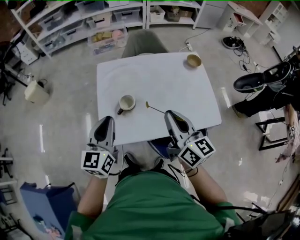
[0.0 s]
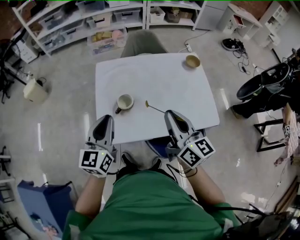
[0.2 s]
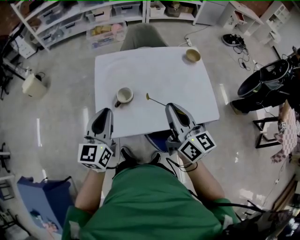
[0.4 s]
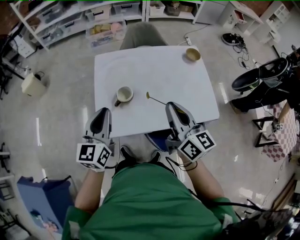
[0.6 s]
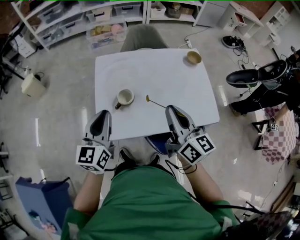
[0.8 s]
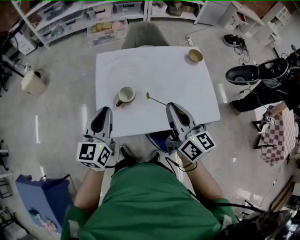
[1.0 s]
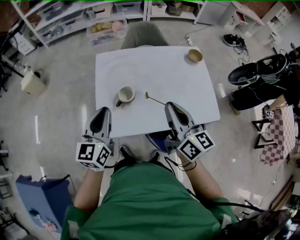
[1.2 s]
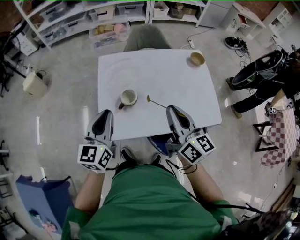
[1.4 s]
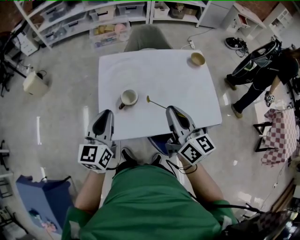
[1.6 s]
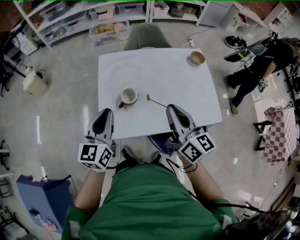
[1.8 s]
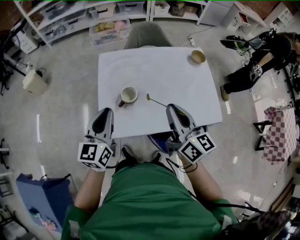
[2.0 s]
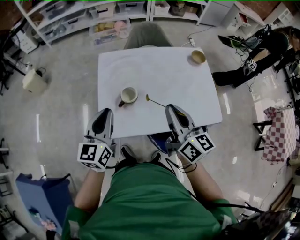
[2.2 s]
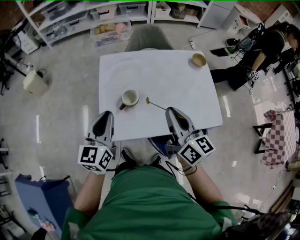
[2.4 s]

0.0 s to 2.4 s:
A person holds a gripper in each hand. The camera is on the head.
0.0 to 1.2 s: There are only small adjustments of the grippers.
1.2 to 2.4 s: Both grippers stay about where they are.

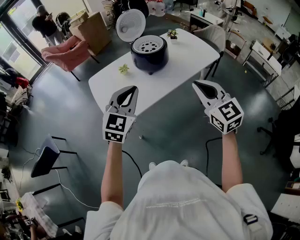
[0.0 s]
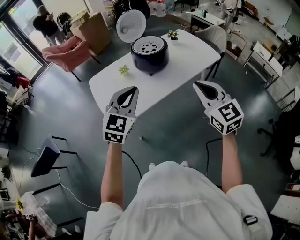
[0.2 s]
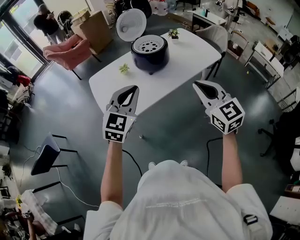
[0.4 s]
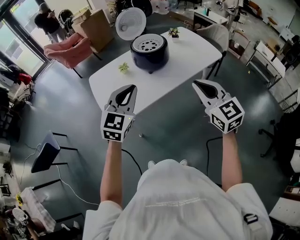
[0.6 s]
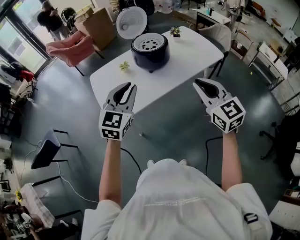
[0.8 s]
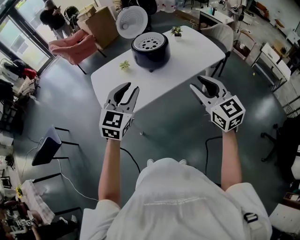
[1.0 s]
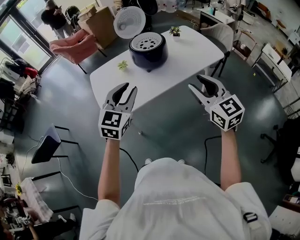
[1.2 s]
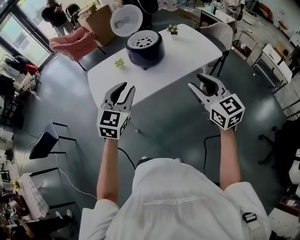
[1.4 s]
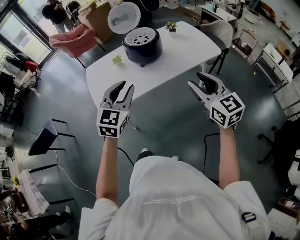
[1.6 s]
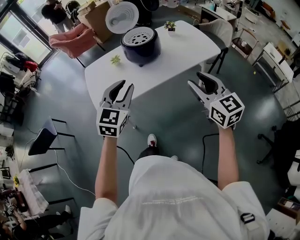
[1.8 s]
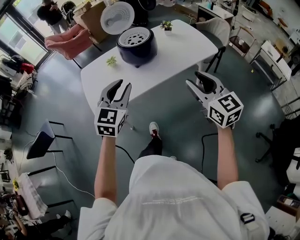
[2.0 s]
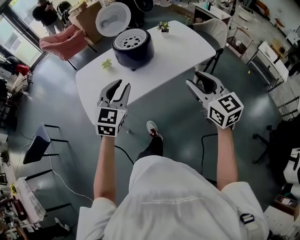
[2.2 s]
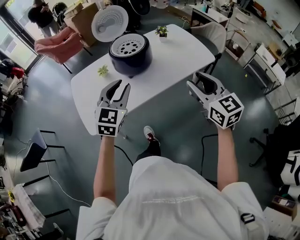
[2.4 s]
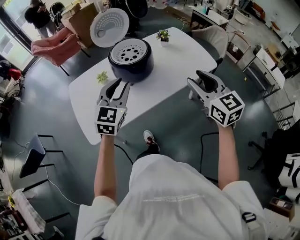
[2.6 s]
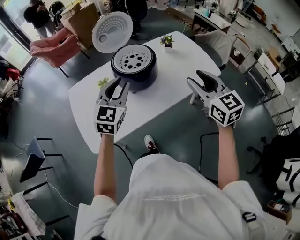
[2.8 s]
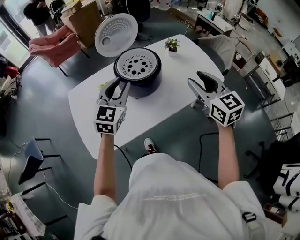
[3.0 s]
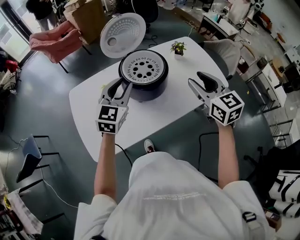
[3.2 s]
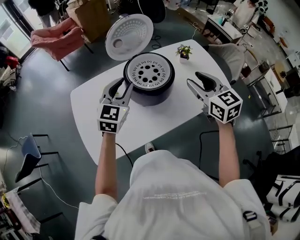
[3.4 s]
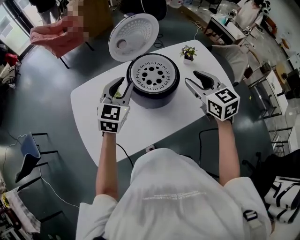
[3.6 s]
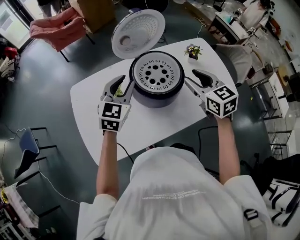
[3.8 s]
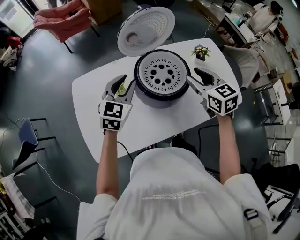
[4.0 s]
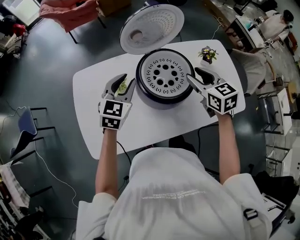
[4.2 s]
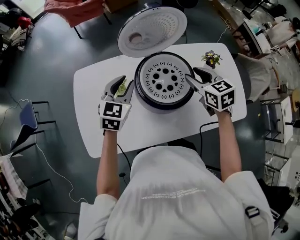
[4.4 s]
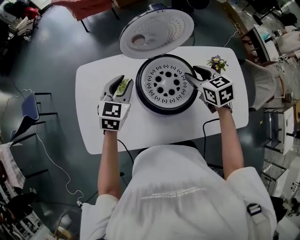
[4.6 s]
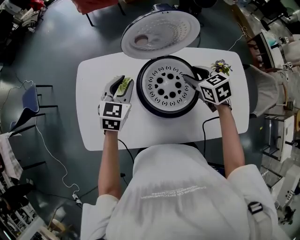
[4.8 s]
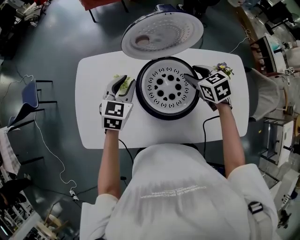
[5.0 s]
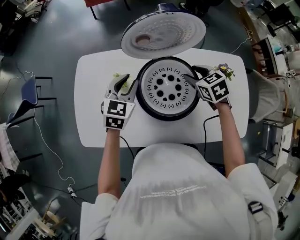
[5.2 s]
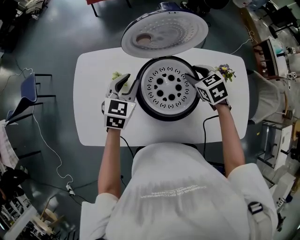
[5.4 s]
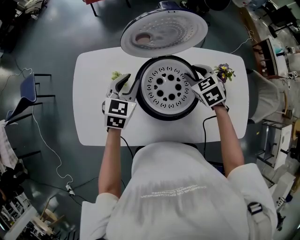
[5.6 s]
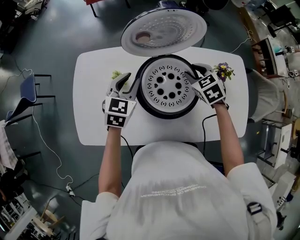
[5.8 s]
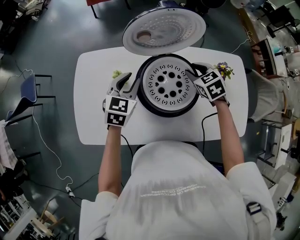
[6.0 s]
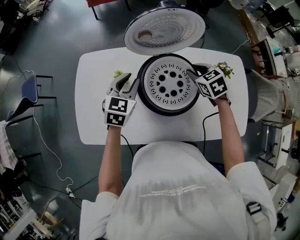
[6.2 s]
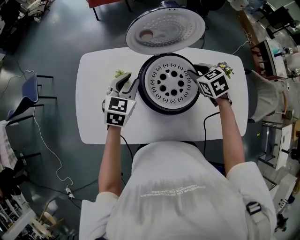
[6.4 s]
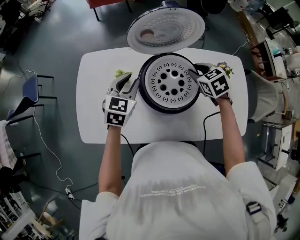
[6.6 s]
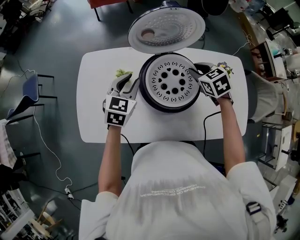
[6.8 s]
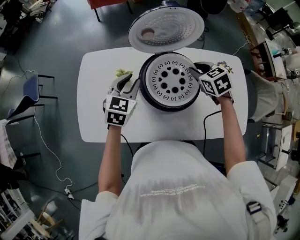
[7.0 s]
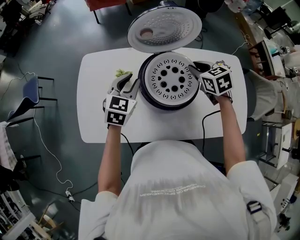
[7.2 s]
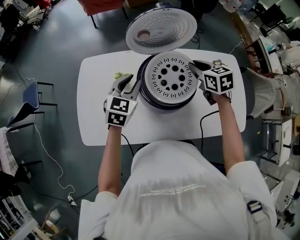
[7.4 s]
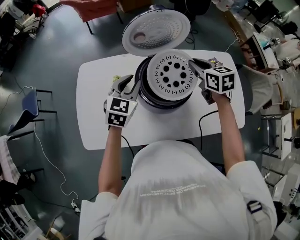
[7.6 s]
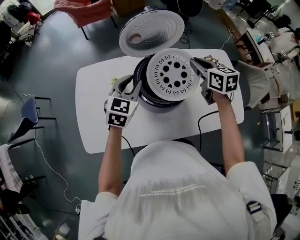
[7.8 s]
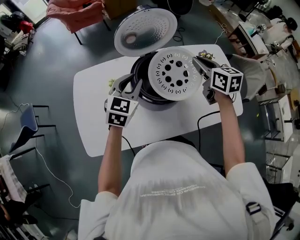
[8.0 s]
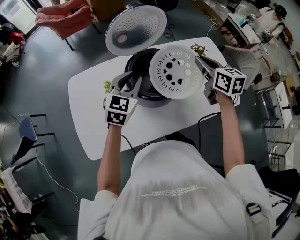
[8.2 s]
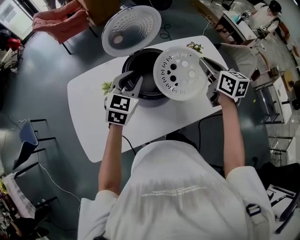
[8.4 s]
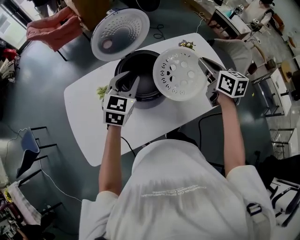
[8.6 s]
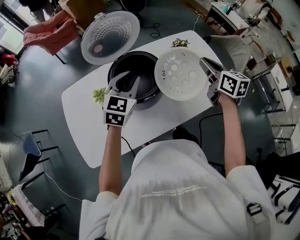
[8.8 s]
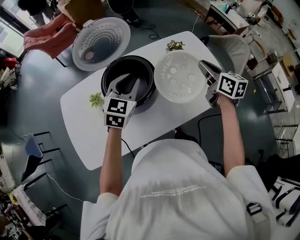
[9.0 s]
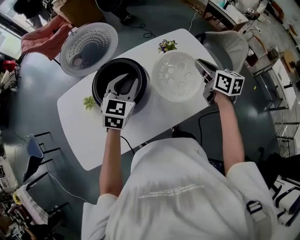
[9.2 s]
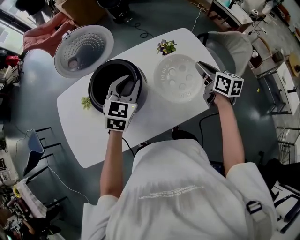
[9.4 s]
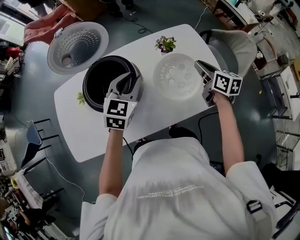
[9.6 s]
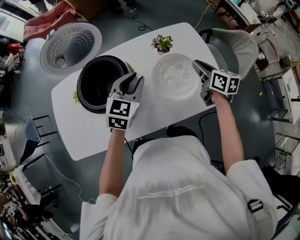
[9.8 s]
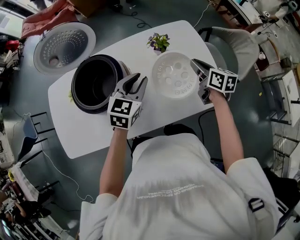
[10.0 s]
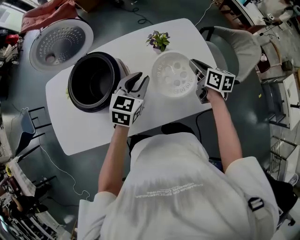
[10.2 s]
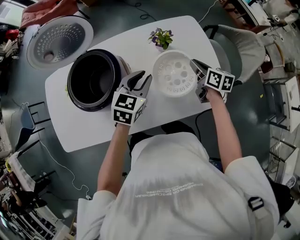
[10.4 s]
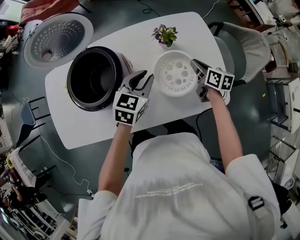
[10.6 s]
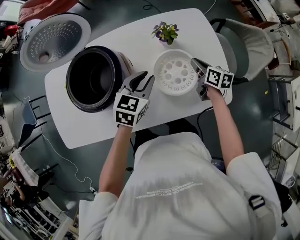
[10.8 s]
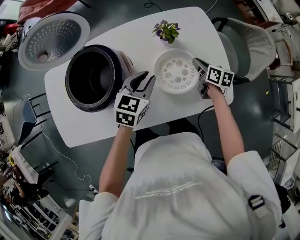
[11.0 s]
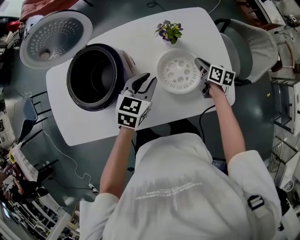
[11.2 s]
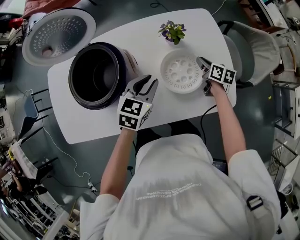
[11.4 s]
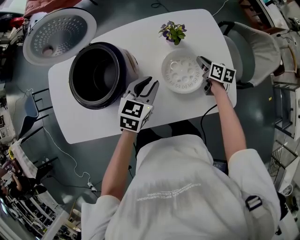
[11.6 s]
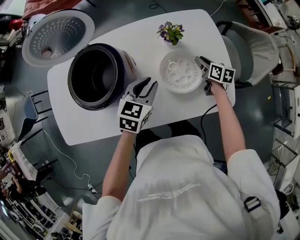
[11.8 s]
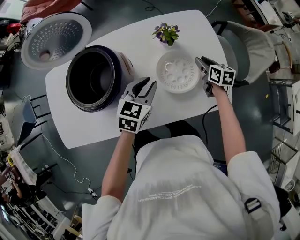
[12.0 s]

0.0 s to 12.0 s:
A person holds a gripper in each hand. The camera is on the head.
0.0 to 1.6 s: Both grippers travel together to the right, about 10 cm. The right gripper opens its fingers. Meanwhile the left gripper opens.
1.6 to 3.0 s: The two grippers go about 30 cm forward.
3.0 to 4.4 s: The left gripper travels forward, downward and to the left by about 20 cm, and changes its angle by some 20 degrees. The right gripper goes some 30 cm forward and downward, and changes its angle by roughly 30 degrees.
4.4 to 6.0 s: The right gripper is displaced downward and forward by some 10 cm, and changes its angle by approximately 30 degrees.
6.0 to 7.6 s: The left gripper changes place by approximately 5 cm, while the right gripper shifts approximately 10 cm upward, changes its angle by roughly 30 degrees, and closes its fingers.
7.6 to 9.0 s: The right gripper heads to the right and backward, covering approximately 25 cm, and swivels about 30 degrees, while the left gripper goes about 15 cm to the right.
9.0 to 10.4 s: The right gripper shifts roughly 25 cm downward, to the right and forward, while the left gripper is displaced to the right and downward by roughly 25 cm.
10.4 to 12.0 s: The right gripper goes approximately 10 cm downward, and opens.

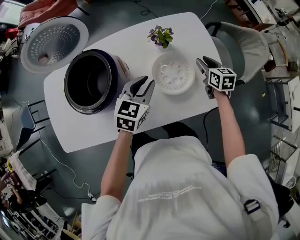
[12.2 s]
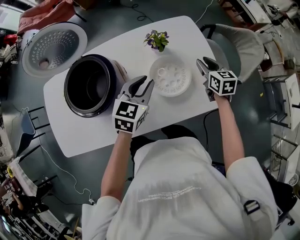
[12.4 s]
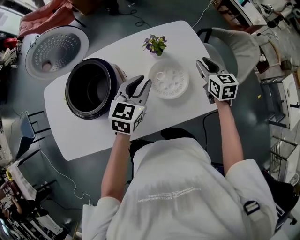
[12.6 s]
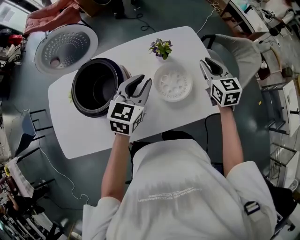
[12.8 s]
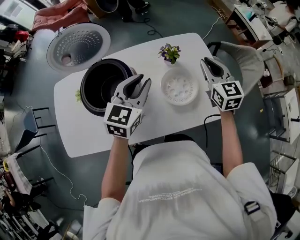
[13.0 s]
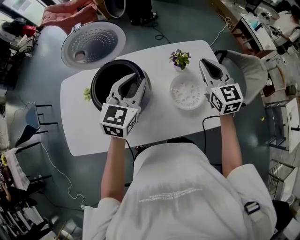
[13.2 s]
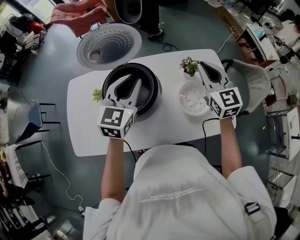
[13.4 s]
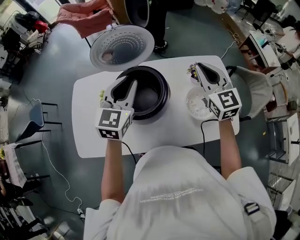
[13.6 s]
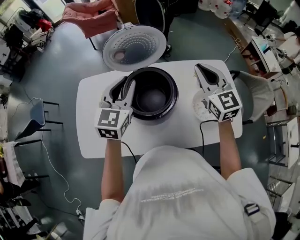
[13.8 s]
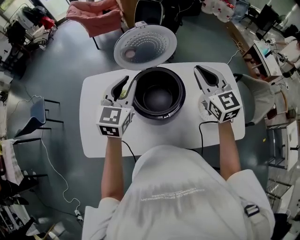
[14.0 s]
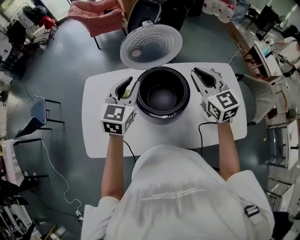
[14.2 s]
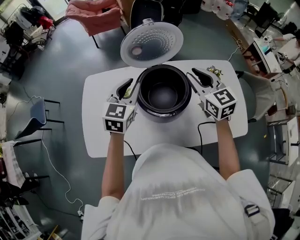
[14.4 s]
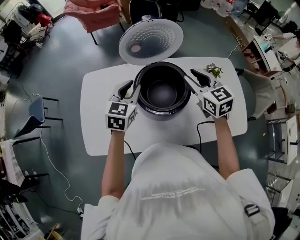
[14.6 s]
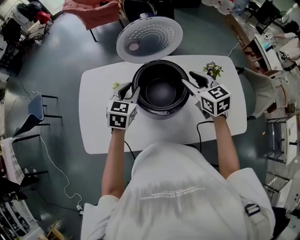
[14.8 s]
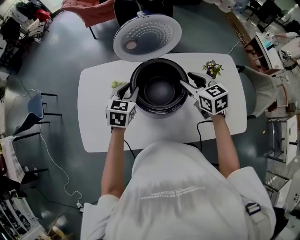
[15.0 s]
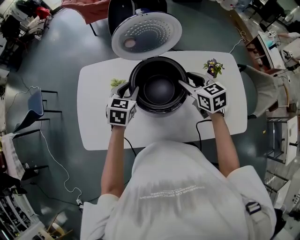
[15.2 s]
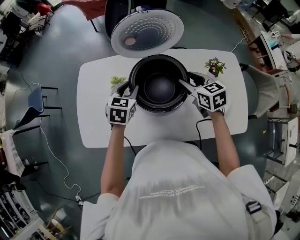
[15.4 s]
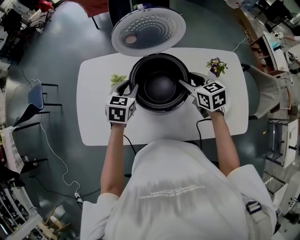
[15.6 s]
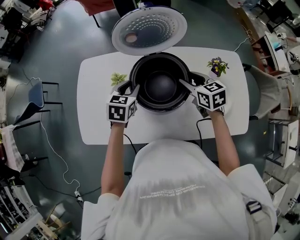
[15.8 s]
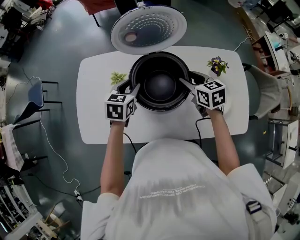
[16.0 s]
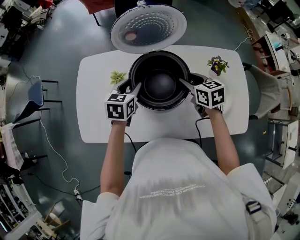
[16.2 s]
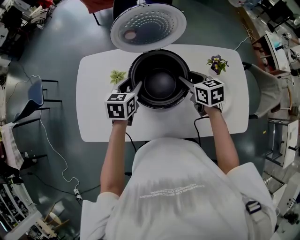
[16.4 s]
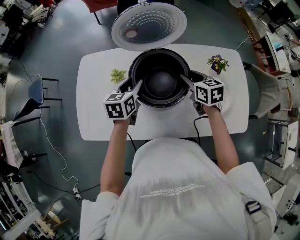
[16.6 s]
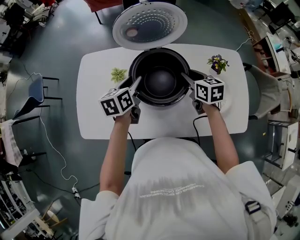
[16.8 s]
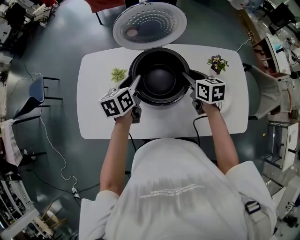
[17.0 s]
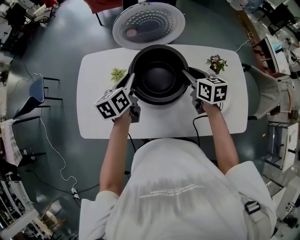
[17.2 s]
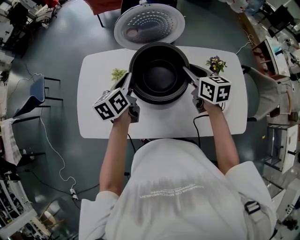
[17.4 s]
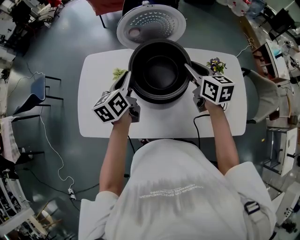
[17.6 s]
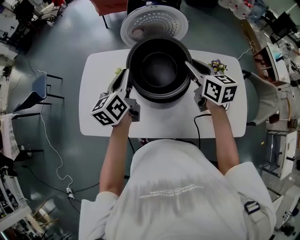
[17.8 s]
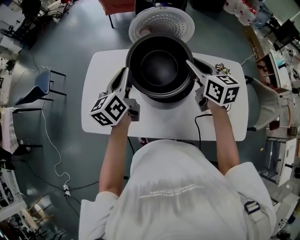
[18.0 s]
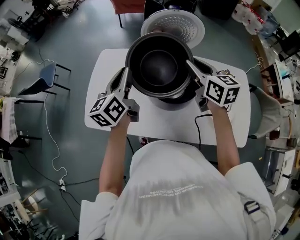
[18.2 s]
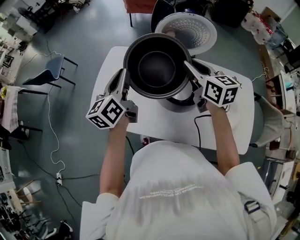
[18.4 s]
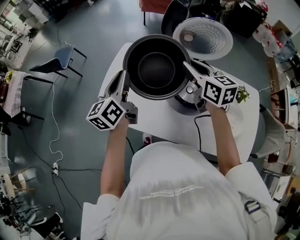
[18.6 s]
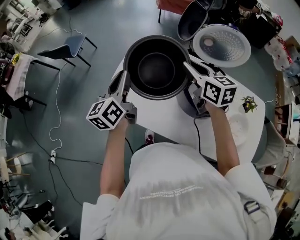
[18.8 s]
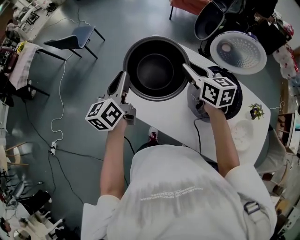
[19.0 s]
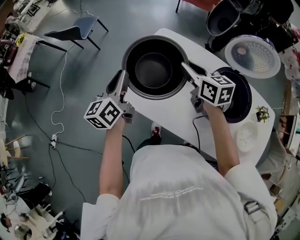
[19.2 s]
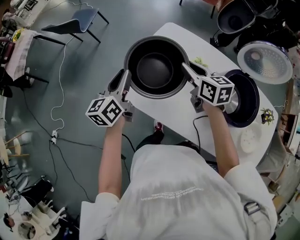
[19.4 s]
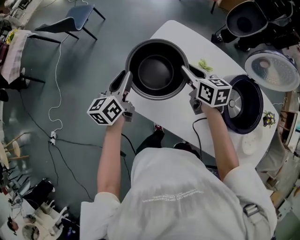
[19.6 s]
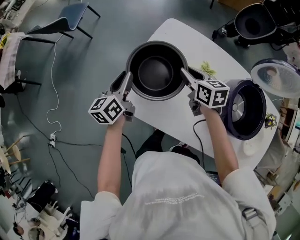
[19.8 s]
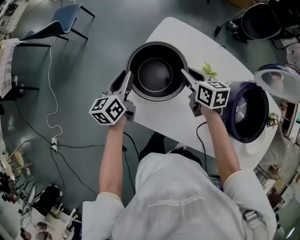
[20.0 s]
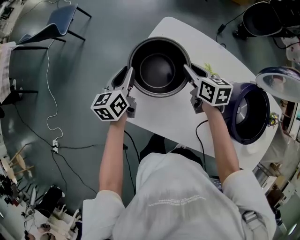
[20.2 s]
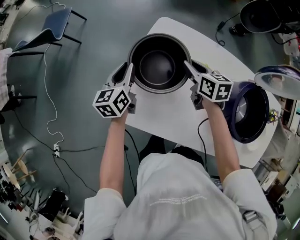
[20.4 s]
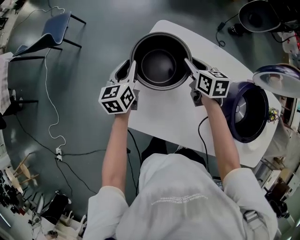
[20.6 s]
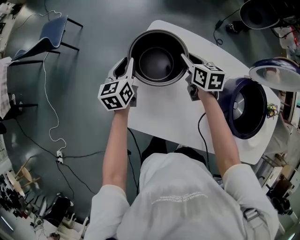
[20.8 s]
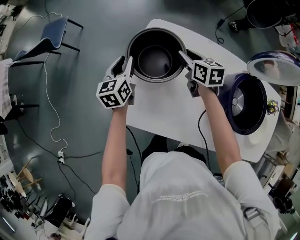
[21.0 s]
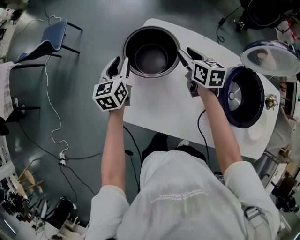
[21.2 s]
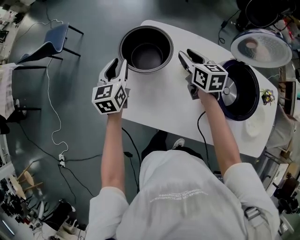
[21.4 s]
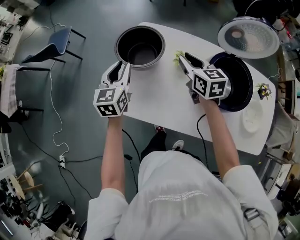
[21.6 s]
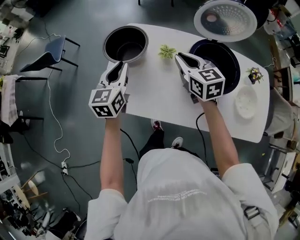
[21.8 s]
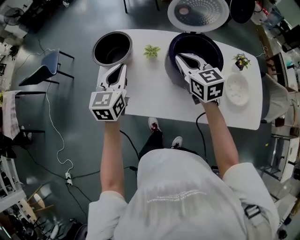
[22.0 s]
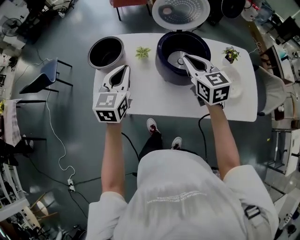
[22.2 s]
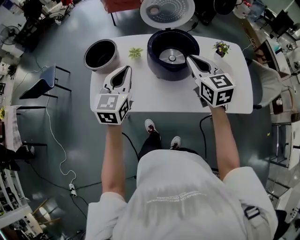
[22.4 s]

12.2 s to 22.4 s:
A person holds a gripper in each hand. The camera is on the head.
12.2 to 13.6 s: The left gripper moves to the left and upward, approximately 30 cm, and changes its angle by some 30 degrees. The right gripper heads upward and to the left, covering about 40 cm, turns by roughly 40 degrees, and closes up.
13.6 to 15.2 s: Both grippers move downward and to the left, some 20 cm. The left gripper swivels roughly 30 degrees, while the right gripper rotates roughly 30 degrees, and opens.
15.2 to 16.6 s: The left gripper swivels some 20 degrees.
16.6 to 18.0 s: Both grippers travel together upward, some 15 cm. The left gripper turns by about 30 degrees, and closes its fingers.
18.0 to 19.4 s: The left gripper ends up some 35 cm from where it was, and changes its angle by roughly 20 degrees. The right gripper moves about 40 cm, and swivels approximately 30 degrees.
19.4 to 21.0 s: The grippers both shift forward and downward by roughly 20 cm.
21.0 to 22.4 s: Both grippers travel together backward, to the right and upward, roughly 50 cm. The left gripper changes its angle by roughly 40 degrees, and closes its fingers. Meanwhile the right gripper swivels some 30 degrees, and closes up.
